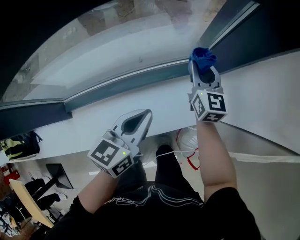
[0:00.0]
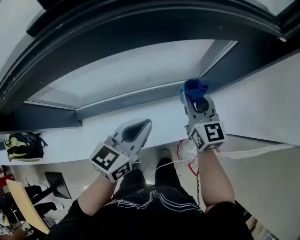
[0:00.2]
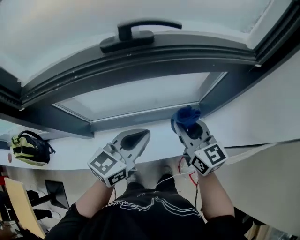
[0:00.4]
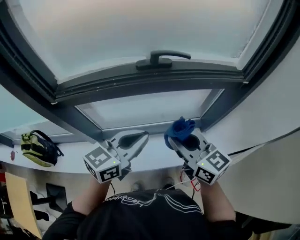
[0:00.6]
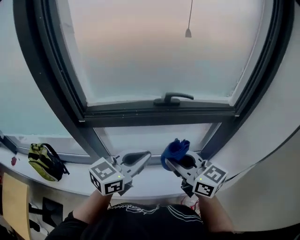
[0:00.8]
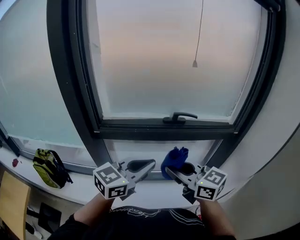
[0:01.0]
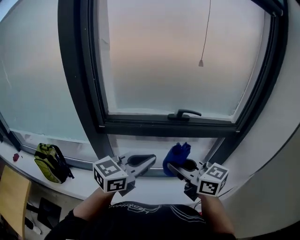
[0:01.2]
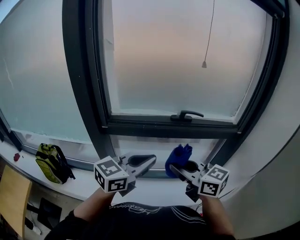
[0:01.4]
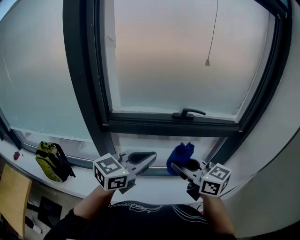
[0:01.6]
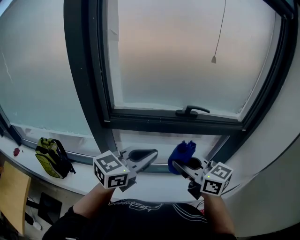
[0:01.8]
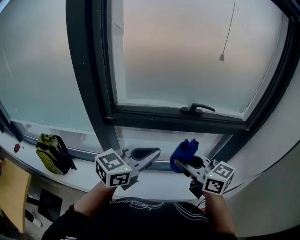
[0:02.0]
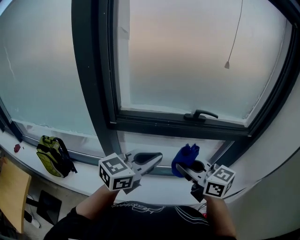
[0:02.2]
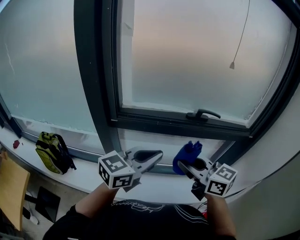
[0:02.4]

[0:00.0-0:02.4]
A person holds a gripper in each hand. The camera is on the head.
0:00.0 to 0:01.2: The two grippers go approximately 50 cm upward. The right gripper changes its angle by roughly 60 degrees. Meanwhile the left gripper rotates some 30 degrees.
0:01.2 to 0:02.4: The left gripper shifts roughly 5 cm to the left, while the right gripper ends up roughly 5 cm from where it was.

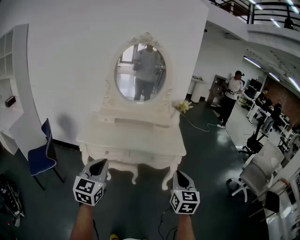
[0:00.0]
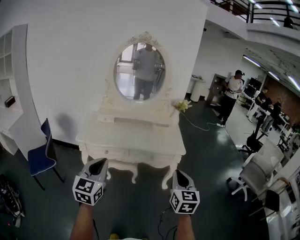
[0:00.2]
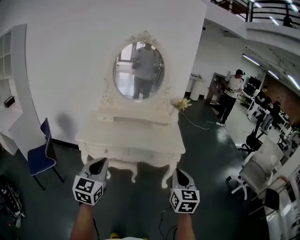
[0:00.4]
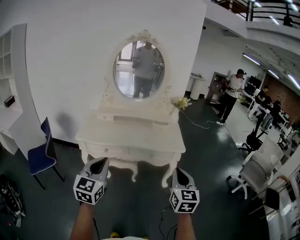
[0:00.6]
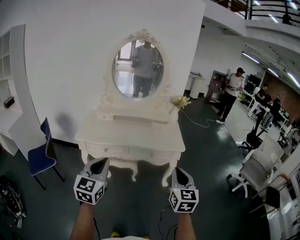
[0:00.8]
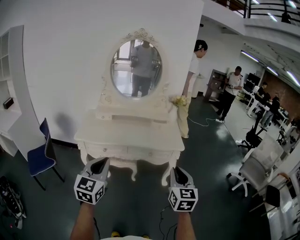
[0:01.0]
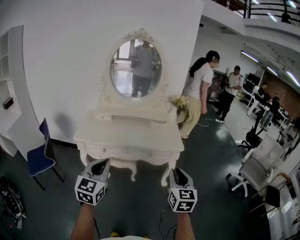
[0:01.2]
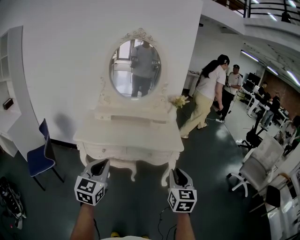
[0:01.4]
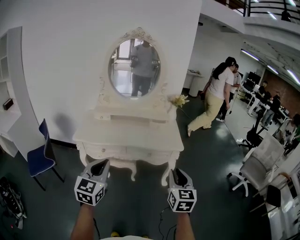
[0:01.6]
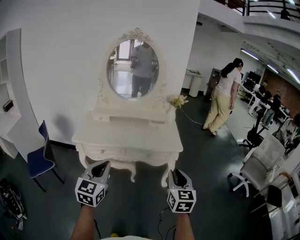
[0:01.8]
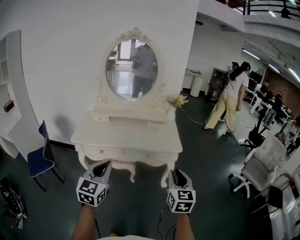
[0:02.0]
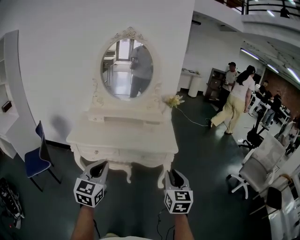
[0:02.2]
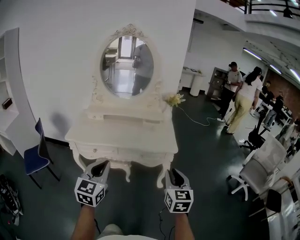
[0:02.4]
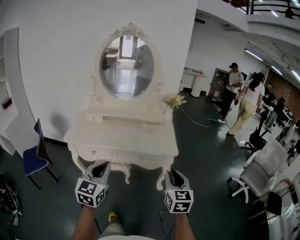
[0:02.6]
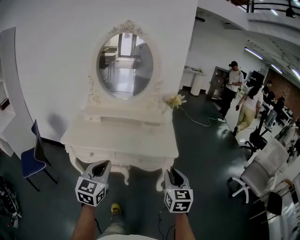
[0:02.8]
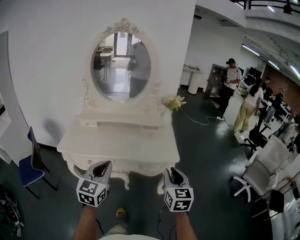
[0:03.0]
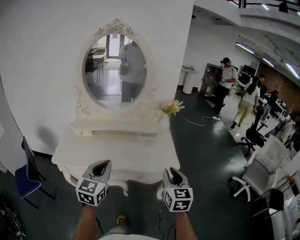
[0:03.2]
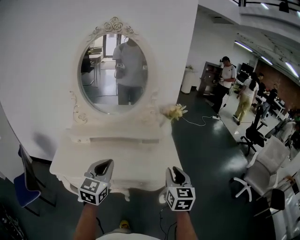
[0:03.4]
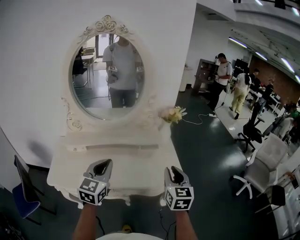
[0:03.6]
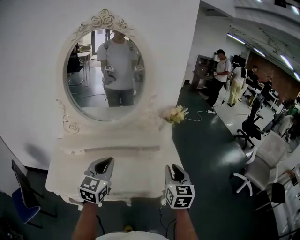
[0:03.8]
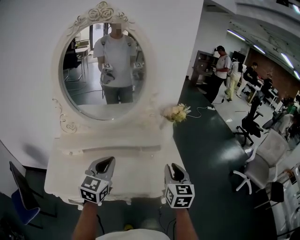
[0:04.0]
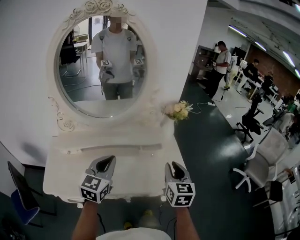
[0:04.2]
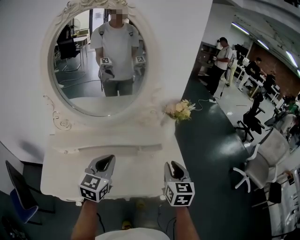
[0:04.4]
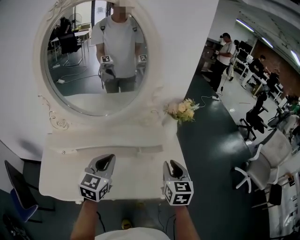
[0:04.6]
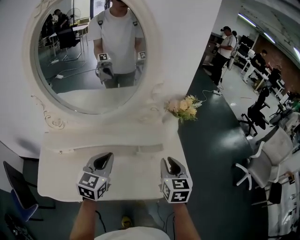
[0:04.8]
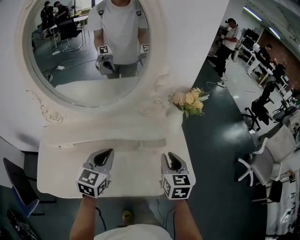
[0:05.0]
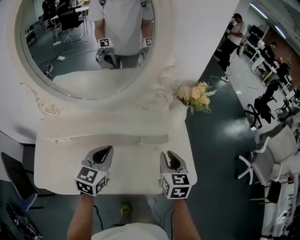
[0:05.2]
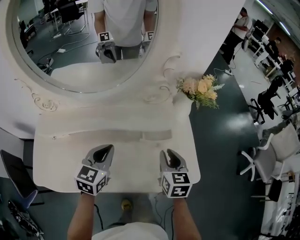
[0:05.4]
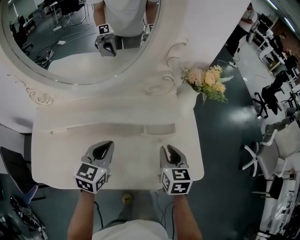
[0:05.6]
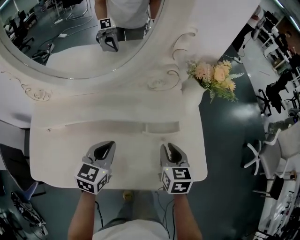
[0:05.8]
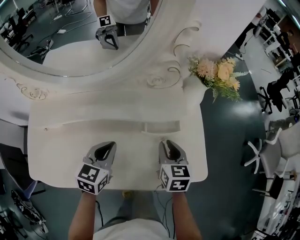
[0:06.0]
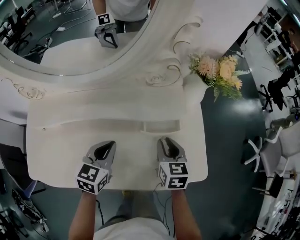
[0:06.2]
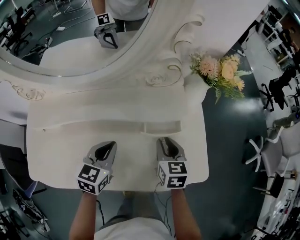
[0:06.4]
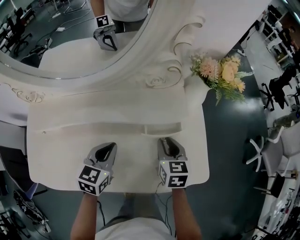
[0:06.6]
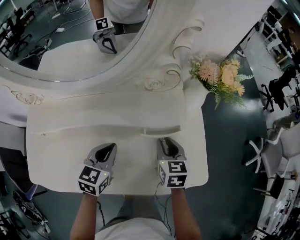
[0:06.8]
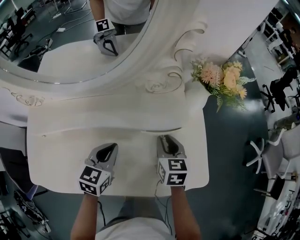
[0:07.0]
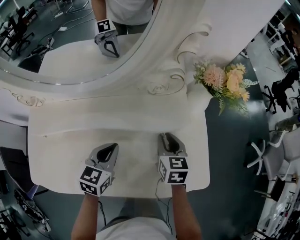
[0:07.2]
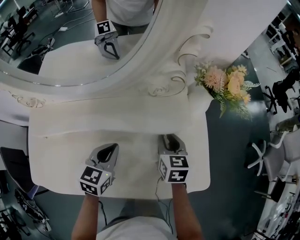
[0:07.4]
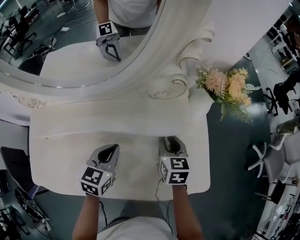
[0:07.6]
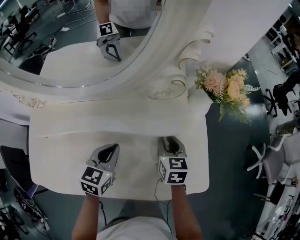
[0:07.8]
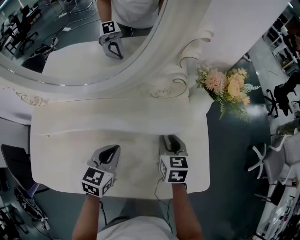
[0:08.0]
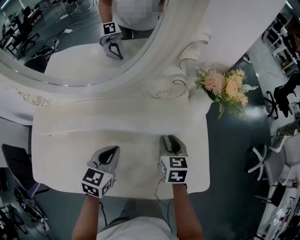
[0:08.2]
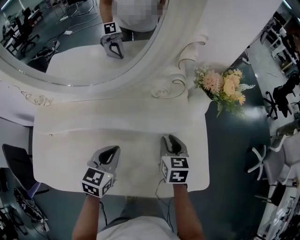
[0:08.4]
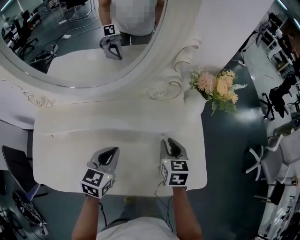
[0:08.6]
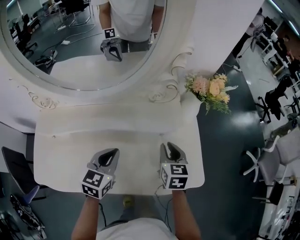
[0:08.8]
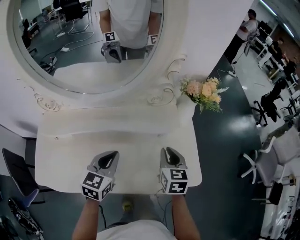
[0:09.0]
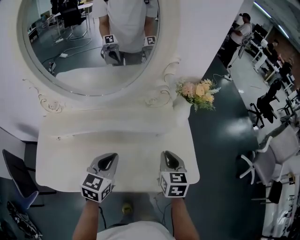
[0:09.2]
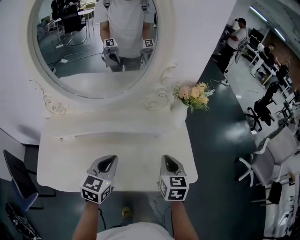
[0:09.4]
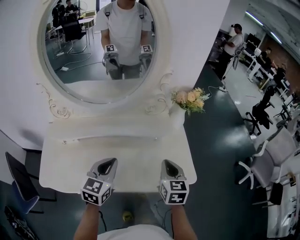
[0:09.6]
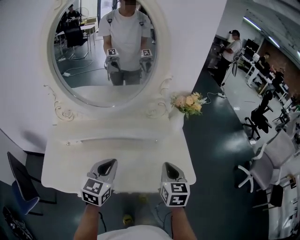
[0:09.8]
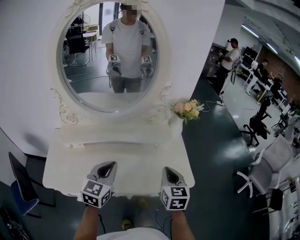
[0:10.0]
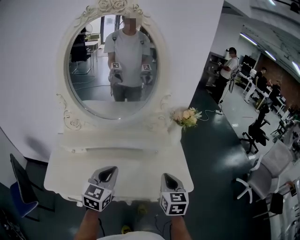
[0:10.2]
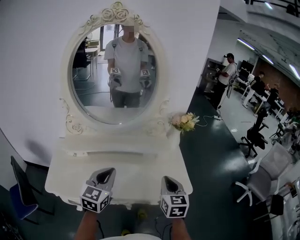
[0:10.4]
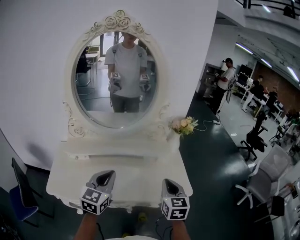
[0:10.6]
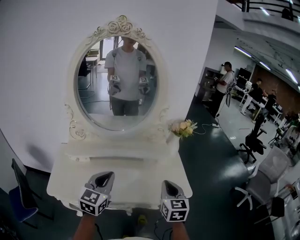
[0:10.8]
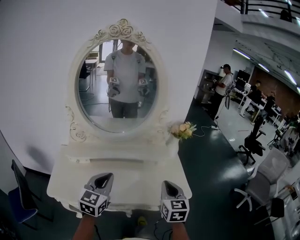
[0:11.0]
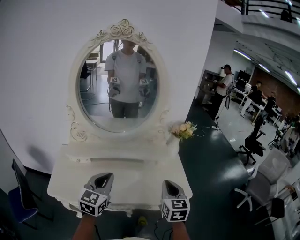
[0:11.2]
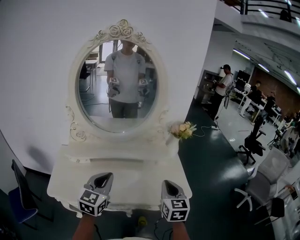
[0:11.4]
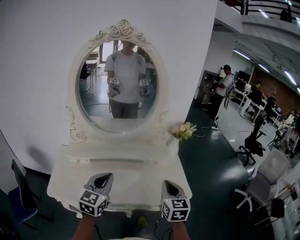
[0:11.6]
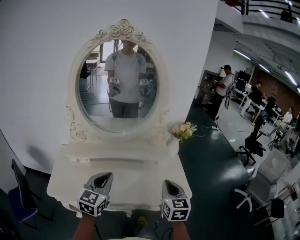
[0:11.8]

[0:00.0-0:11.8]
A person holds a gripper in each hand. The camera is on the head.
0:00.0 to 0:01.4: The grippers stay close to where they were, moving slightly.
0:01.4 to 0:03.0: The right gripper is displaced forward by about 20 cm, while the left gripper is displaced forward and to the right by approximately 20 cm.
0:03.0 to 0:04.4: The grippers both shift forward by about 40 cm.
0:04.4 to 0:06.0: The two grippers go some 25 cm downward and forward. The right gripper swivels some 20 degrees, while the left gripper changes its angle by about 20 degrees.
0:06.0 to 0:07.4: The right gripper is displaced forward by roughly 10 cm.
0:07.4 to 0:08.8: The right gripper shifts roughly 10 cm backward and upward. The left gripper moves upward, some 5 cm.
0:08.8 to 0:10.4: Both grippers travel together backward and upward, approximately 25 cm.
0:10.4 to 0:11.8: The grippers stay close to where they were, moving slightly.

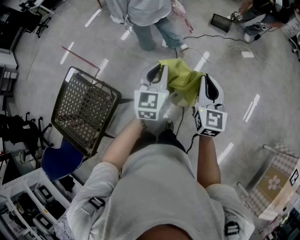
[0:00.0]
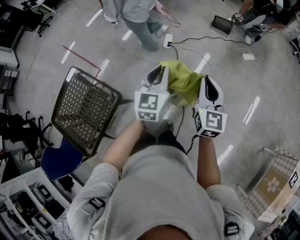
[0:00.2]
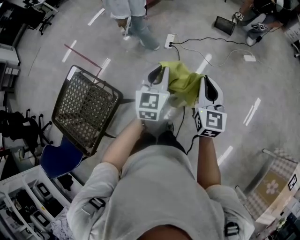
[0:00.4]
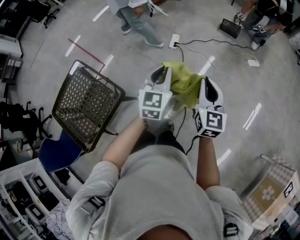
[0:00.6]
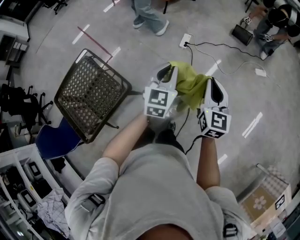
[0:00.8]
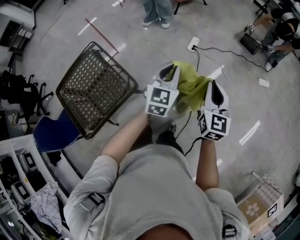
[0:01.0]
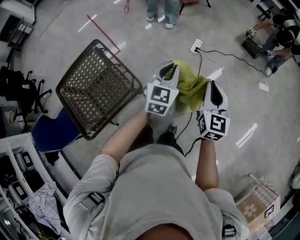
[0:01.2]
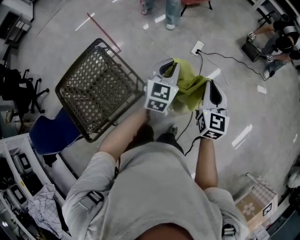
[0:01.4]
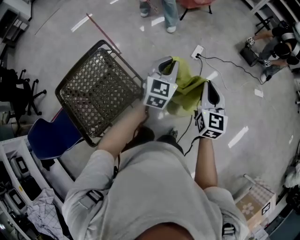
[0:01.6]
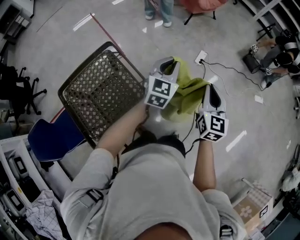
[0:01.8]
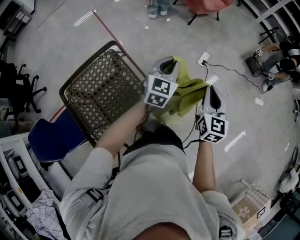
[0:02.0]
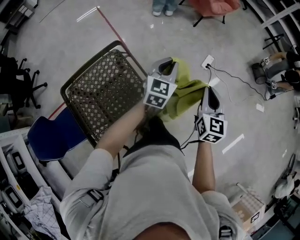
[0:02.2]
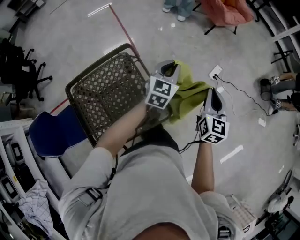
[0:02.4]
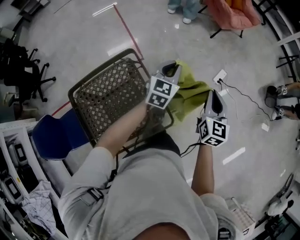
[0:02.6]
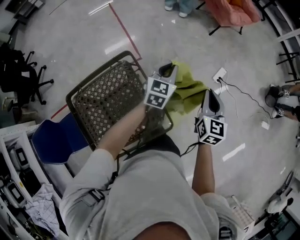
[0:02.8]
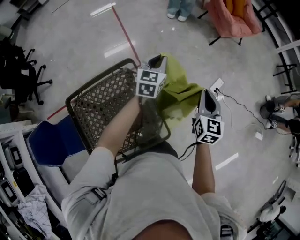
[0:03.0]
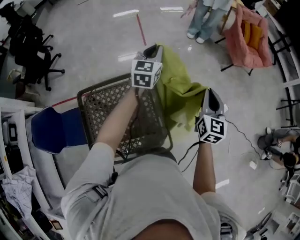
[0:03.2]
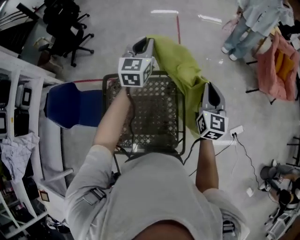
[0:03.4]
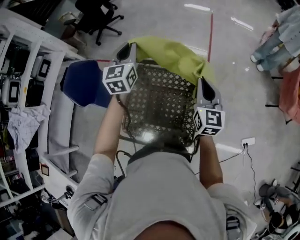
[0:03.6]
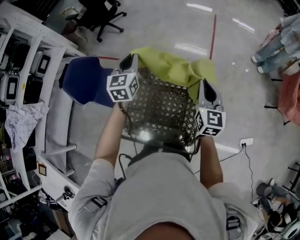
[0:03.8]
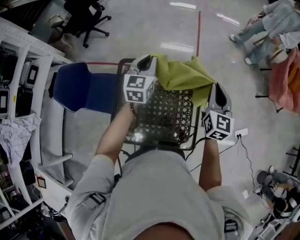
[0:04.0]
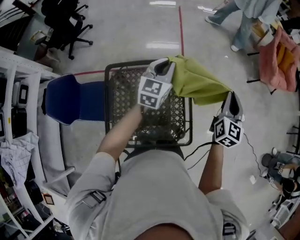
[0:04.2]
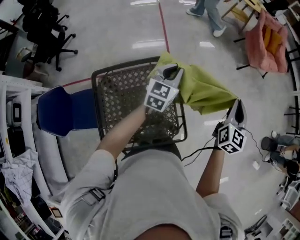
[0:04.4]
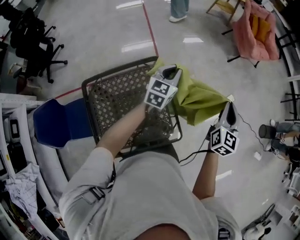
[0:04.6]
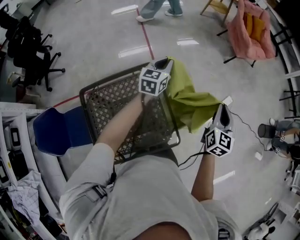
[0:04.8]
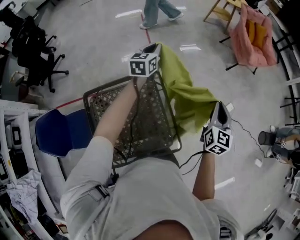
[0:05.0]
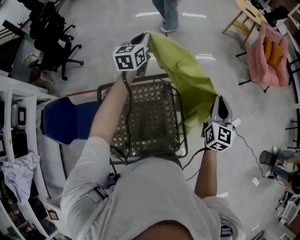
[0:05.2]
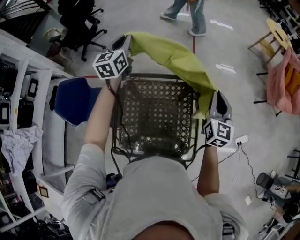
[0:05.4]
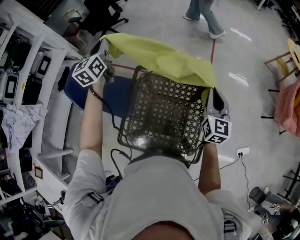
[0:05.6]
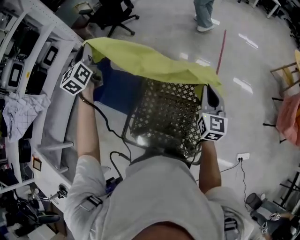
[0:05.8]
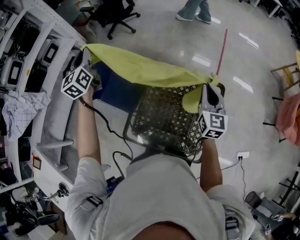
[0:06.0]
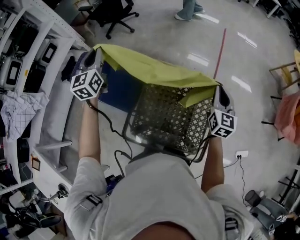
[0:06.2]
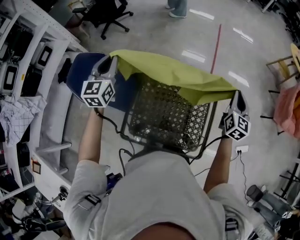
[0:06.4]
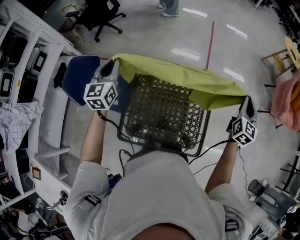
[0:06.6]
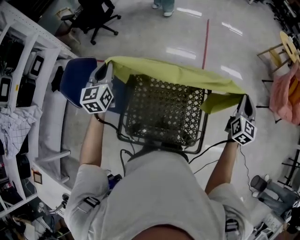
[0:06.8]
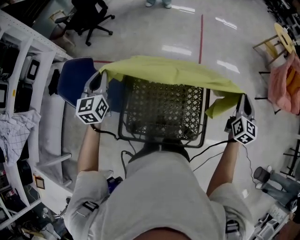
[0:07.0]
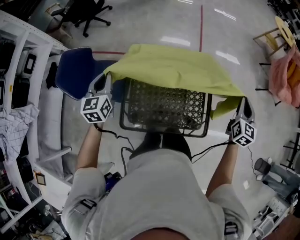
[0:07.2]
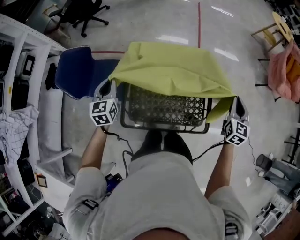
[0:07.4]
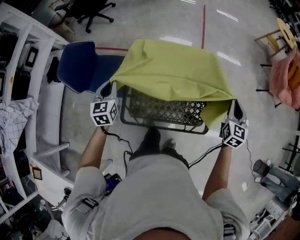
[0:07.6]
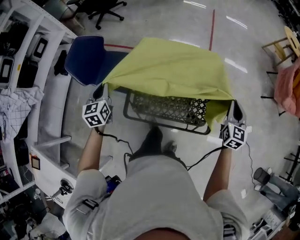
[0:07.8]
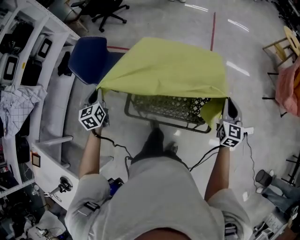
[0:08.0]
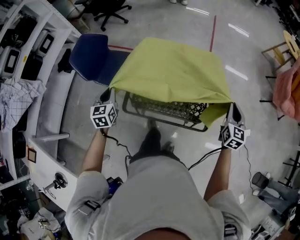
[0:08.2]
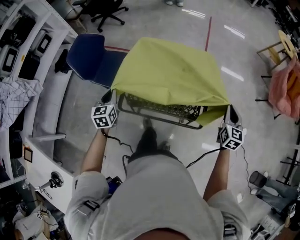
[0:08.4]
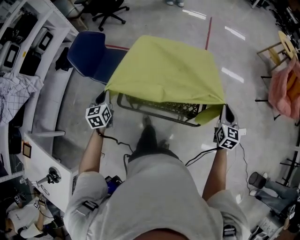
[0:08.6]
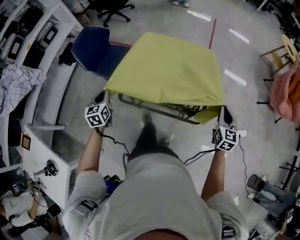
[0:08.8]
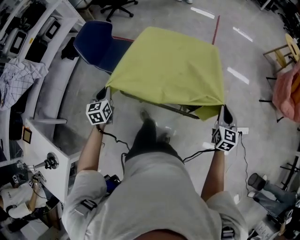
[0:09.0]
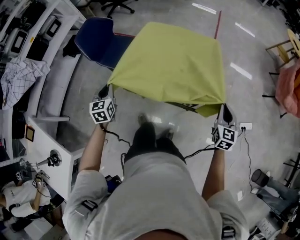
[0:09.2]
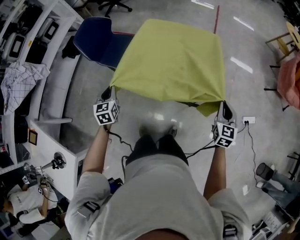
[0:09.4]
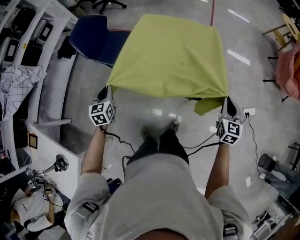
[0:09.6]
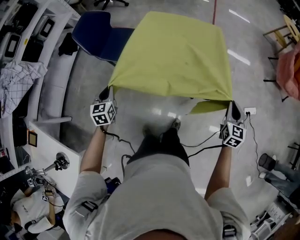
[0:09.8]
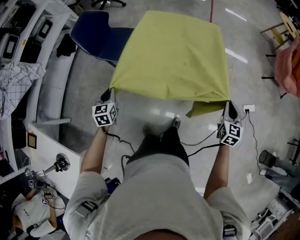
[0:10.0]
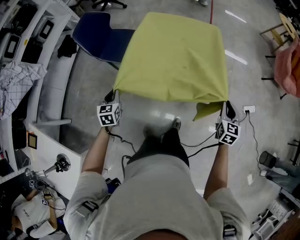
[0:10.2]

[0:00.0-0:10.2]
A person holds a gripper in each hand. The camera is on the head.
0:00.0 to 0:01.4: Both grippers travel together to the left, some 20 cm.
0:01.4 to 0:03.0: Both grippers travel together to the left and forward, approximately 40 cm. The left gripper rotates some 20 degrees.
0:03.0 to 0:04.4: The right gripper moves upward, roughly 5 cm. Meanwhile the left gripper moves about 15 cm upward and comes back.
0:04.4 to 0:05.8: The left gripper shifts by approximately 70 cm, and changes its angle by roughly 70 degrees, while the right gripper changes place by approximately 40 cm, and swivels roughly 50 degrees.
0:05.8 to 0:07.2: The left gripper changes place by some 25 cm, and rotates about 30 degrees; the right gripper shifts by approximately 25 cm, and changes its angle by approximately 30 degrees.
0:07.2 to 0:08.8: The right gripper shifts roughly 20 cm backward and downward. Meanwhile the left gripper is displaced backward by some 25 cm, and swivels approximately 20 degrees.
0:08.8 to 0:10.2: The left gripper heads backward and downward, covering some 10 cm. Meanwhile the right gripper shifts about 15 cm backward.
